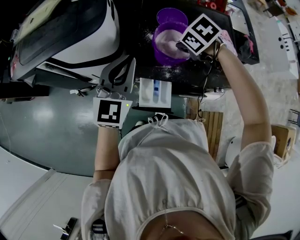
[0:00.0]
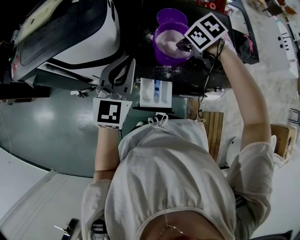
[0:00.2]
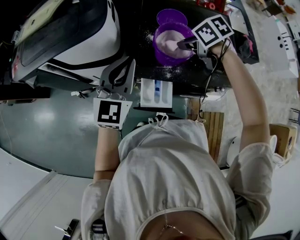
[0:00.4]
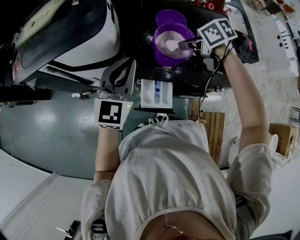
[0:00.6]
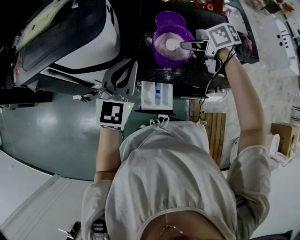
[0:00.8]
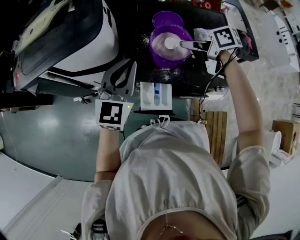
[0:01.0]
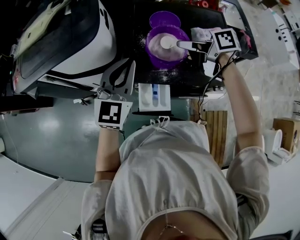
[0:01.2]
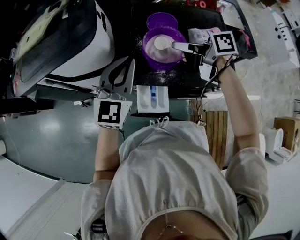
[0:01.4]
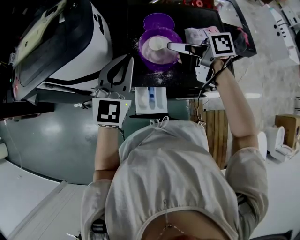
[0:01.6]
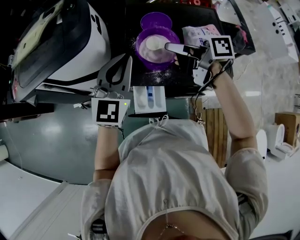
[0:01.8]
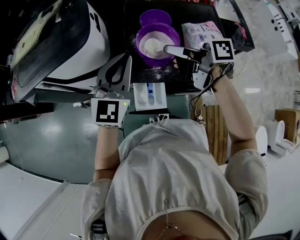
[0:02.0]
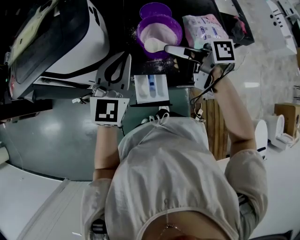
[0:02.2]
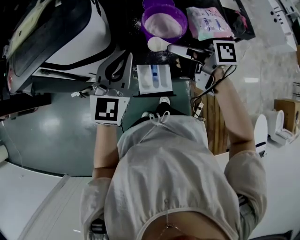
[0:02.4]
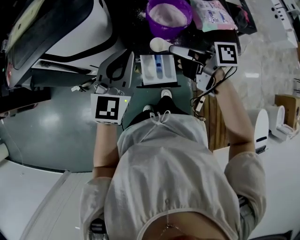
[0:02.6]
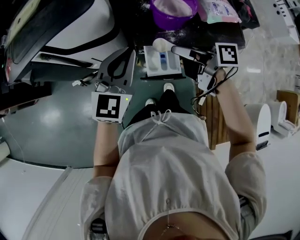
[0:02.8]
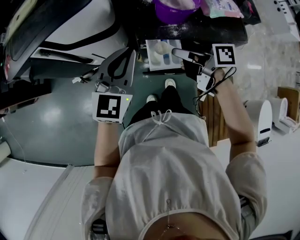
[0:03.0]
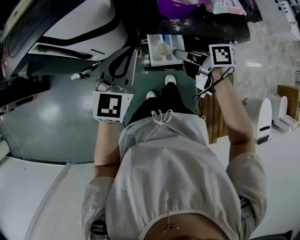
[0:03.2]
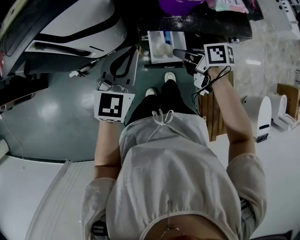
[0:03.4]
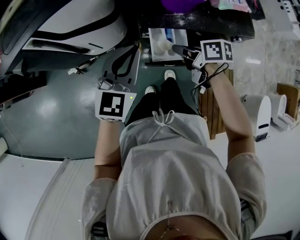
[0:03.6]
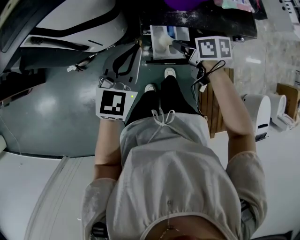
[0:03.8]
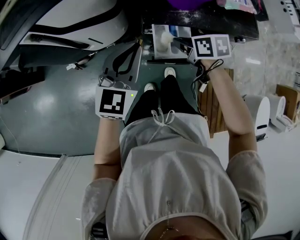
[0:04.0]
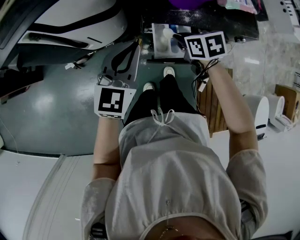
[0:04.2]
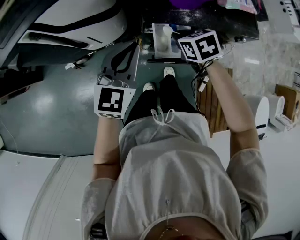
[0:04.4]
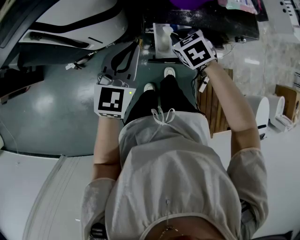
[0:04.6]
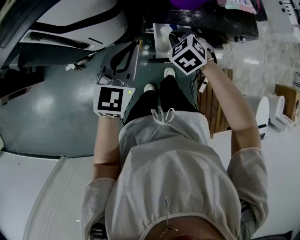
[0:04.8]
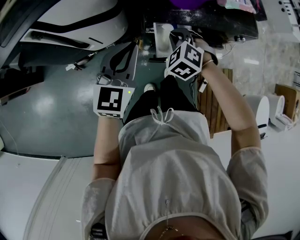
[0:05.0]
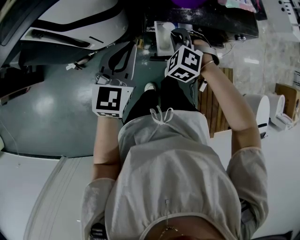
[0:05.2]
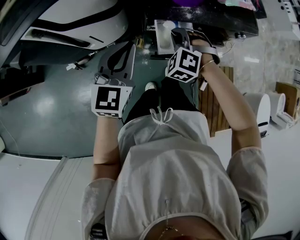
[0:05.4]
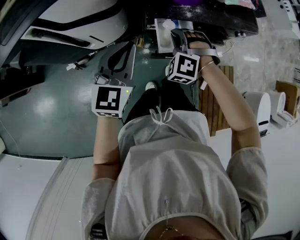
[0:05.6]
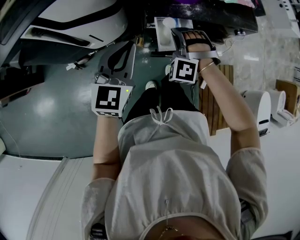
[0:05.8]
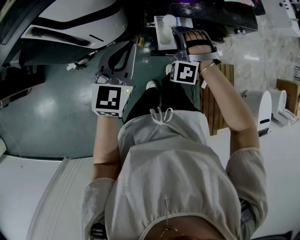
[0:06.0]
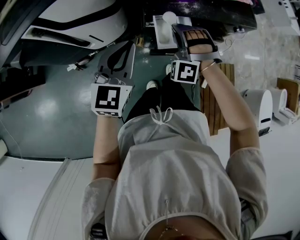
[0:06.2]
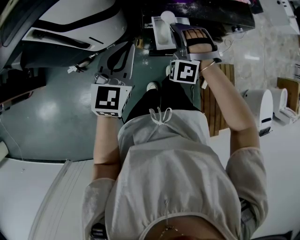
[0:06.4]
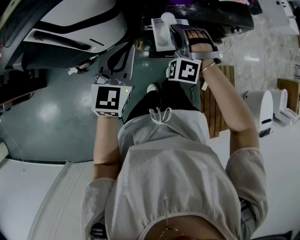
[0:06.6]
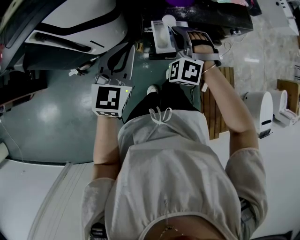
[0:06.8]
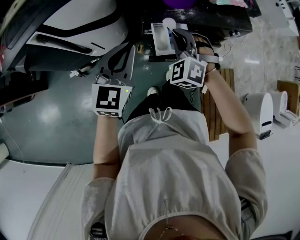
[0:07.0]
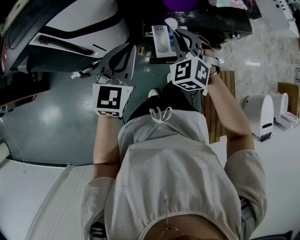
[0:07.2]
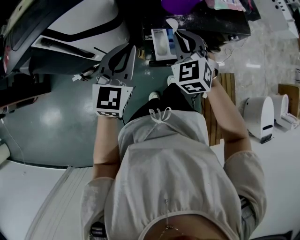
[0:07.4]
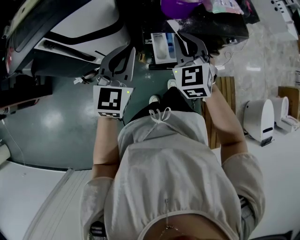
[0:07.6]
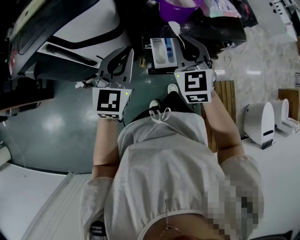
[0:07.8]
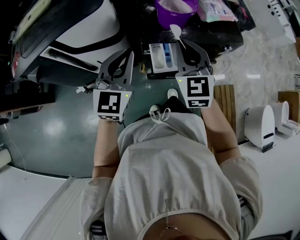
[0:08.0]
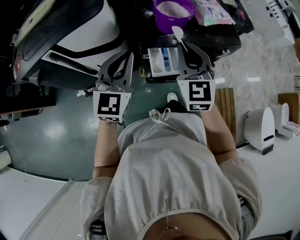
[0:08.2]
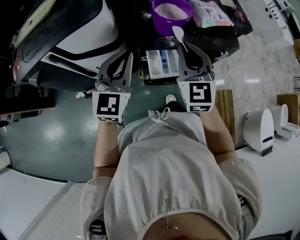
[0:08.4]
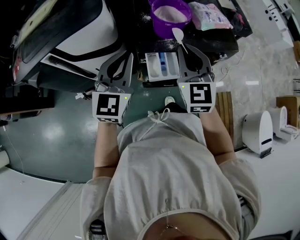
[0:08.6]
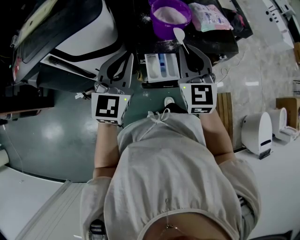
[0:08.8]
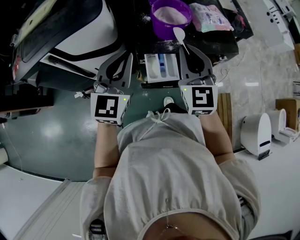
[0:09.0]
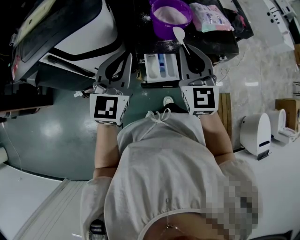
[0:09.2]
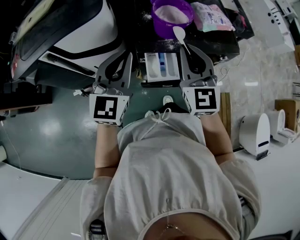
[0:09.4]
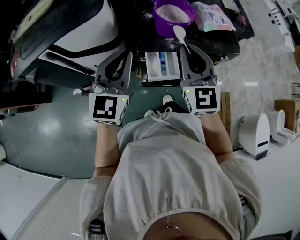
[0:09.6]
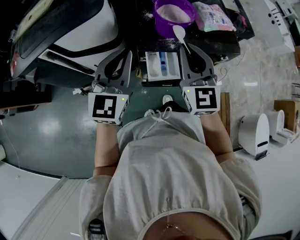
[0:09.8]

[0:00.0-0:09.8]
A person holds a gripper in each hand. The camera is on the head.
0:00.0 to 0:01.4: The right gripper moves upward, about 5 cm, and tilts its fingers roughly 50 degrees upward.
0:01.4 to 0:02.8: The right gripper goes about 20 cm backward, to the left and downward. Meanwhile the left gripper travels to the left, backward and downward by roughly 15 cm.
0:02.8 to 0:04.2: The left gripper goes some 10 cm downward. The right gripper moves downward, approximately 15 cm, and angles its fingers downward, by roughly 40 degrees.
0:04.2 to 0:05.6: The right gripper rolls counterclockwise, seen from behind, by approximately 70 degrees.
0:05.6 to 0:07.0: The right gripper moves upward, roughly 5 cm.
0:07.0 to 0:08.4: The right gripper goes about 15 cm upward, and rotates around the line of its fingers by some 40 degrees, clockwise from behind. The left gripper moves upward, roughly 10 cm.
0:08.4 to 0:09.8: The grippers stay close to where they were, moving slightly.

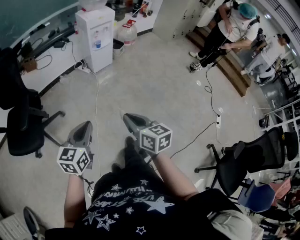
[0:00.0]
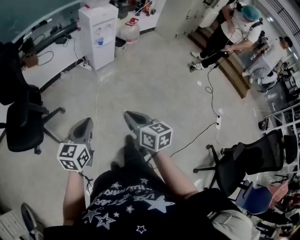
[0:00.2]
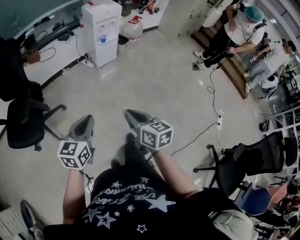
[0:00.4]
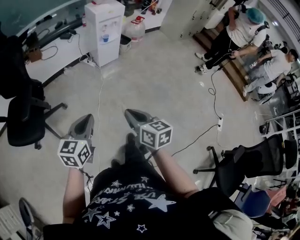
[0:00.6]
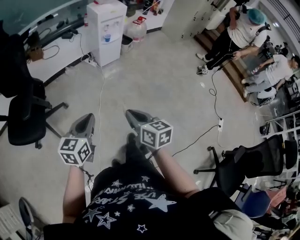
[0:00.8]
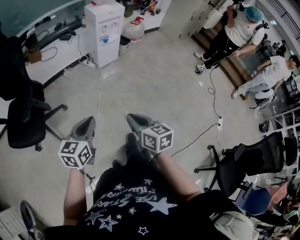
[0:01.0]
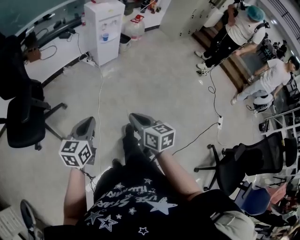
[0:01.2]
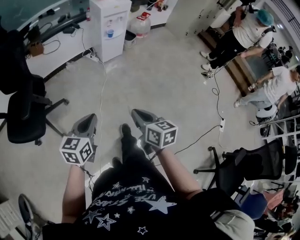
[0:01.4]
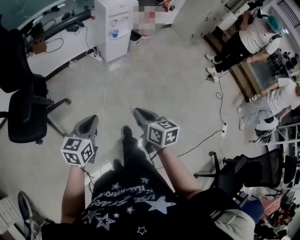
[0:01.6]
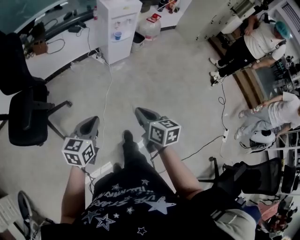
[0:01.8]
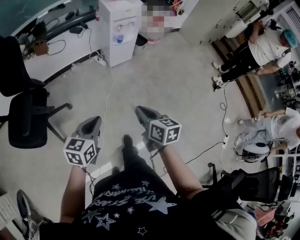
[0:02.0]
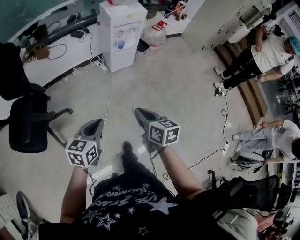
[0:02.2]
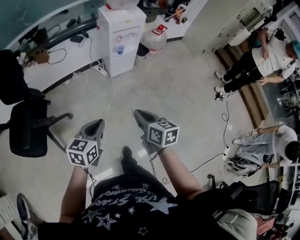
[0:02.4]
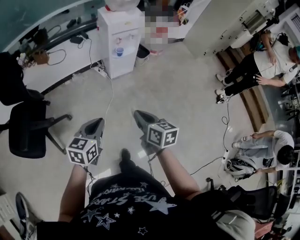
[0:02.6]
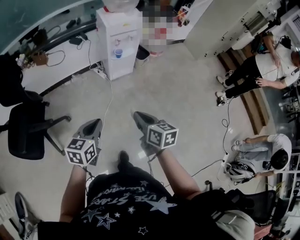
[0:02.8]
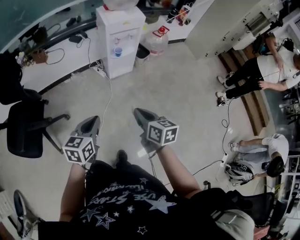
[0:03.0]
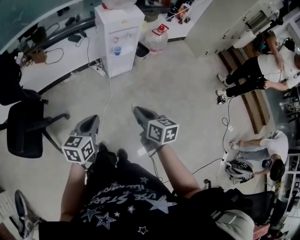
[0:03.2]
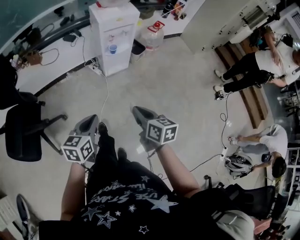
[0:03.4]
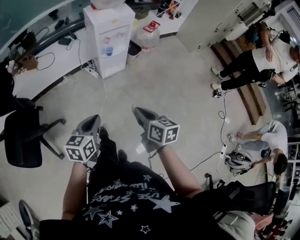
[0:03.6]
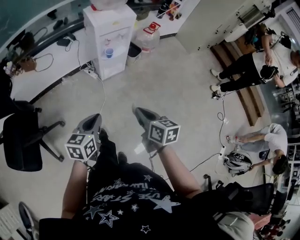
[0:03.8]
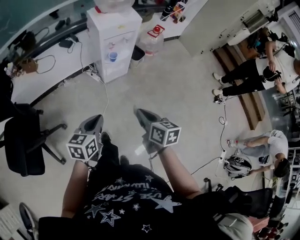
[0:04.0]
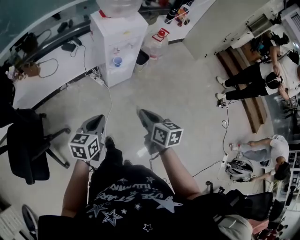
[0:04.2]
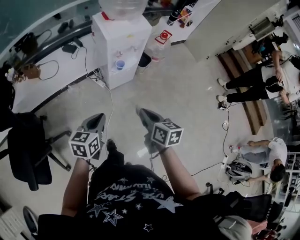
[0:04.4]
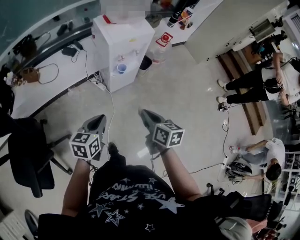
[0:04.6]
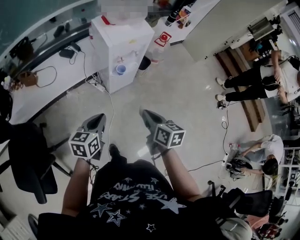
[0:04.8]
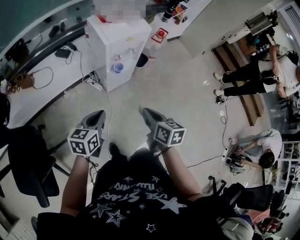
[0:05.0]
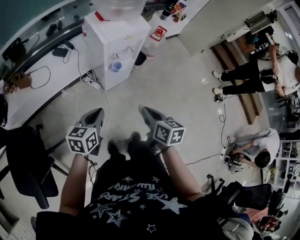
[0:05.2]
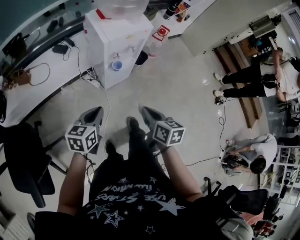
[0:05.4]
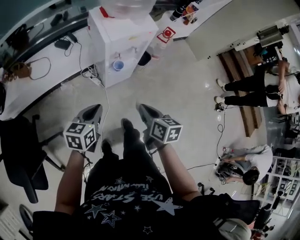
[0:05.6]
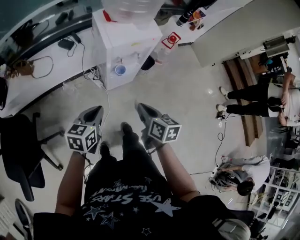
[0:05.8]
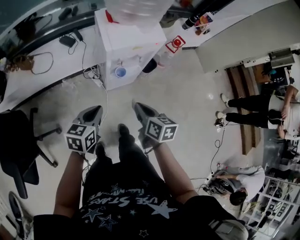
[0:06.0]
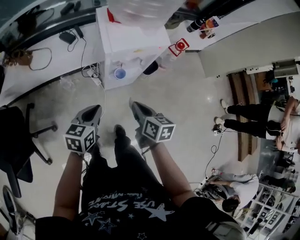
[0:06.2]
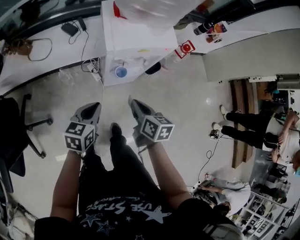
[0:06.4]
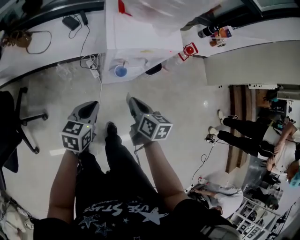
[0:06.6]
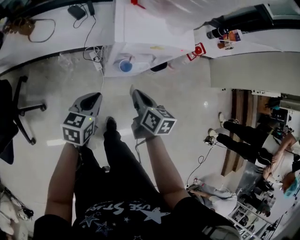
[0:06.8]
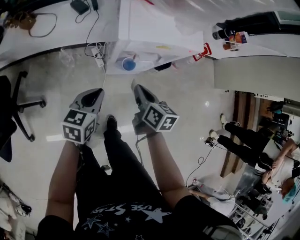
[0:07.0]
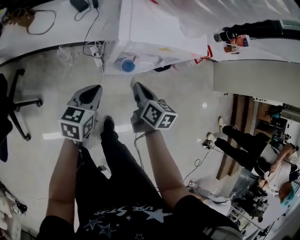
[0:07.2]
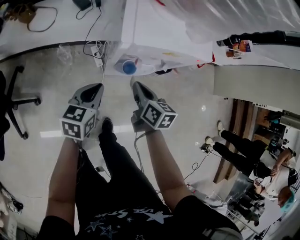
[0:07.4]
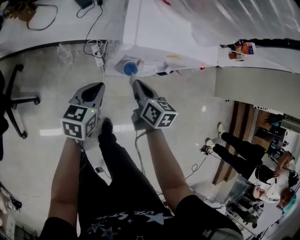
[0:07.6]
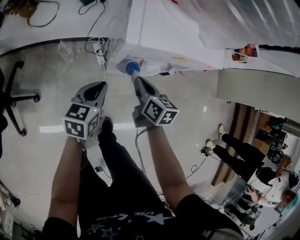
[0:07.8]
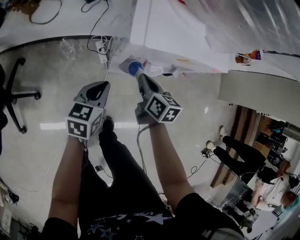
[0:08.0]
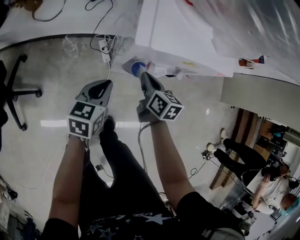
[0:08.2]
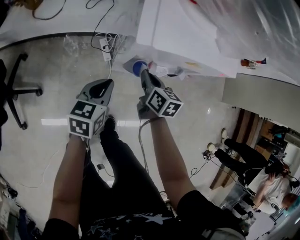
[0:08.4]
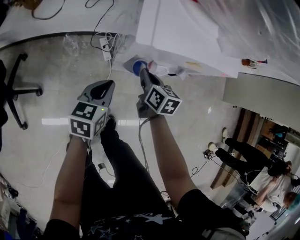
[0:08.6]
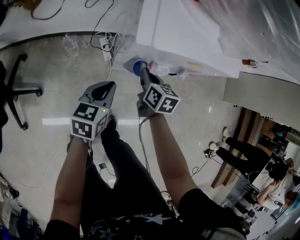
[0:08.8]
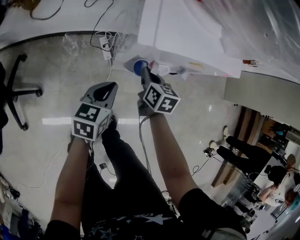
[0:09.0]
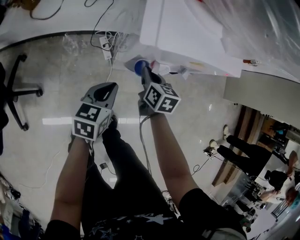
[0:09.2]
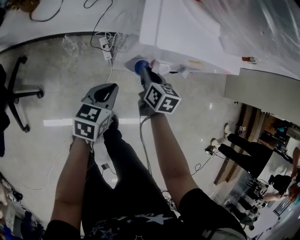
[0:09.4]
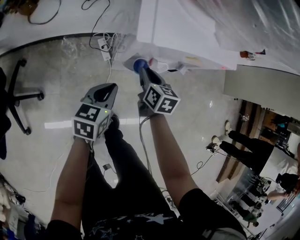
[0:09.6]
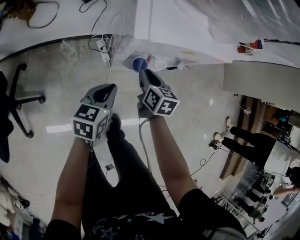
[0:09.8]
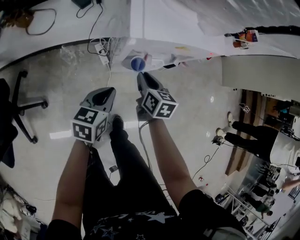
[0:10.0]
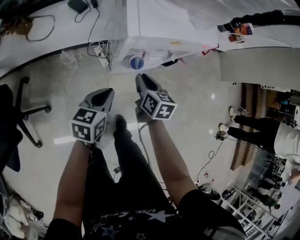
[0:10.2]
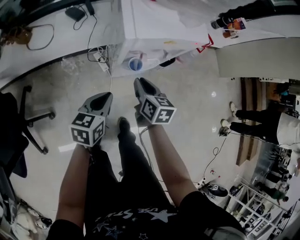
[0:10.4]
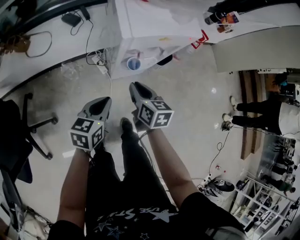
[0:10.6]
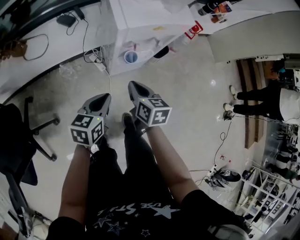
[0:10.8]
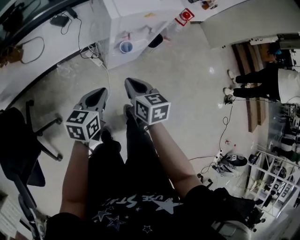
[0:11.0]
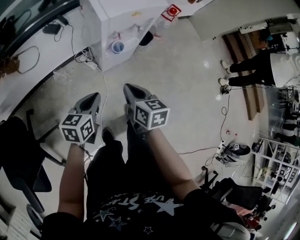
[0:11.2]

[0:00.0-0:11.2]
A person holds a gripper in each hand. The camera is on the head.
0:00.0 to 0:01.6: The left gripper moves forward, some 10 cm. The right gripper heads forward and downward, covering roughly 10 cm.
0:01.6 to 0:03.2: The two grippers go about 25 cm forward.
0:03.2 to 0:04.8: Both grippers move forward, roughly 25 cm.
0:04.8 to 0:06.4: The two grippers go some 20 cm forward and downward.
0:06.4 to 0:08.0: The left gripper is displaced downward and forward by roughly 20 cm. Meanwhile the right gripper is displaced forward and downward by about 25 cm.
0:09.6 to 0:11.2: The right gripper goes some 30 cm backward and upward, while the left gripper is displaced backward and upward by roughly 20 cm.

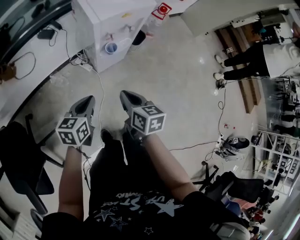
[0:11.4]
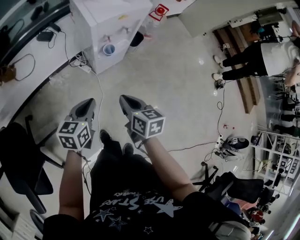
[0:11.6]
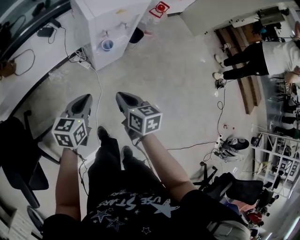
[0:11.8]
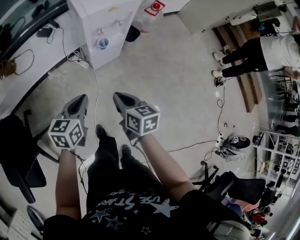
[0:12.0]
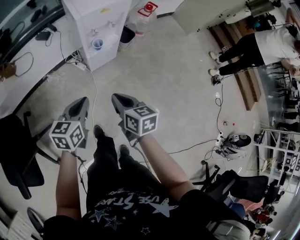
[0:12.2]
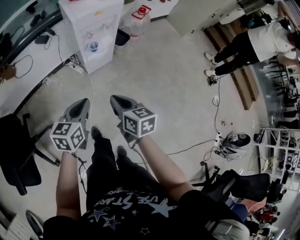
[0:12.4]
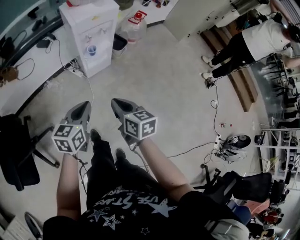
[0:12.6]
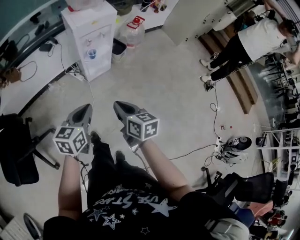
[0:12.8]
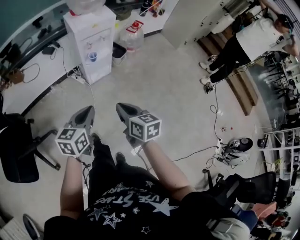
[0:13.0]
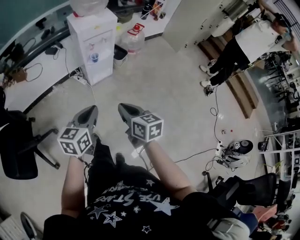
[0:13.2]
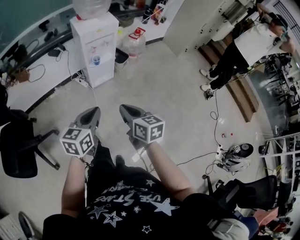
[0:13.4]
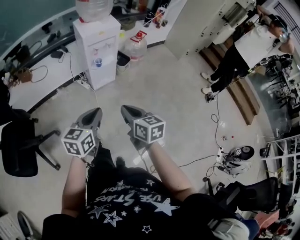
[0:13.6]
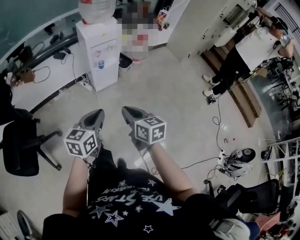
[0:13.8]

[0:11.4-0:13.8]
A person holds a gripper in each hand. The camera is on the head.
0:11.4 to 0:12.6: The grippers both shift backward, to the right and upward by approximately 25 cm.
0:12.6 to 0:13.8: The right gripper shifts about 15 cm backward and upward. Meanwhile the left gripper travels backward, upward and to the right by some 15 cm.
